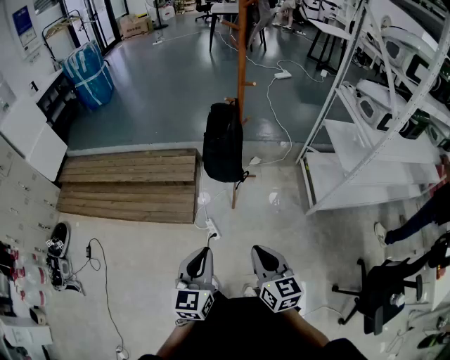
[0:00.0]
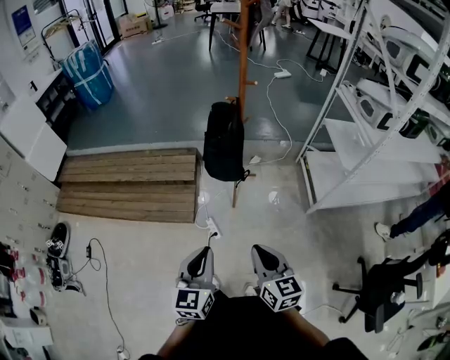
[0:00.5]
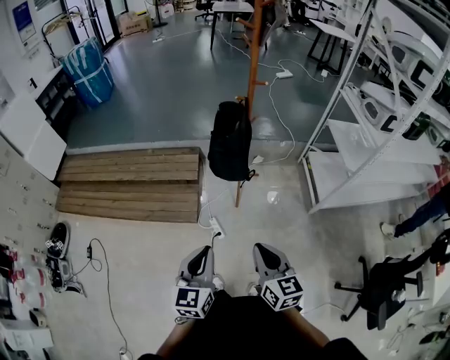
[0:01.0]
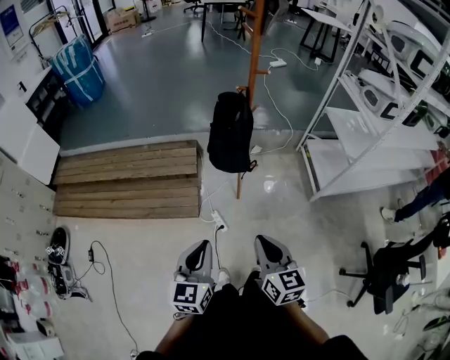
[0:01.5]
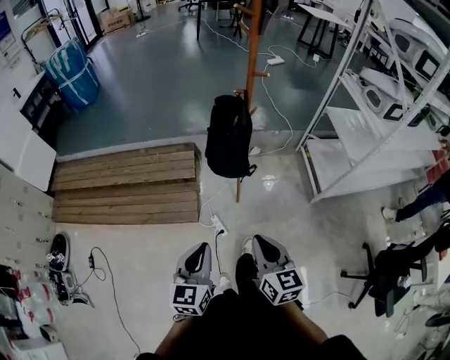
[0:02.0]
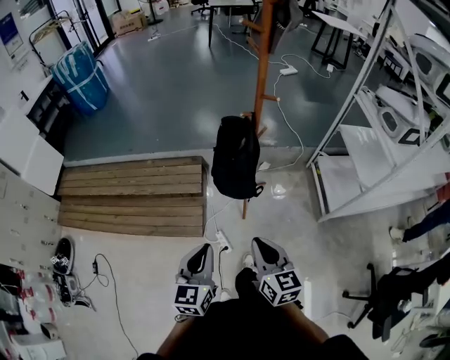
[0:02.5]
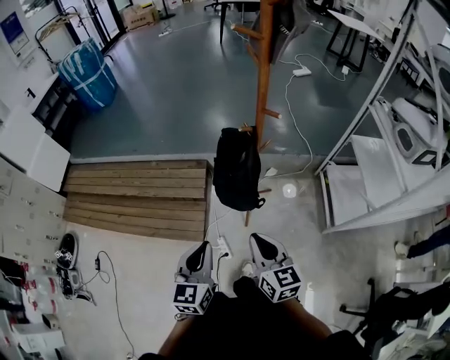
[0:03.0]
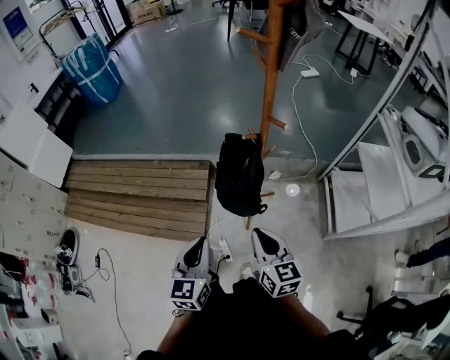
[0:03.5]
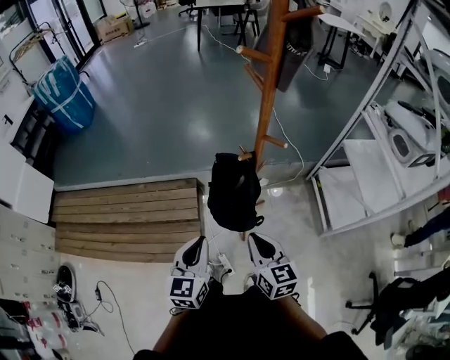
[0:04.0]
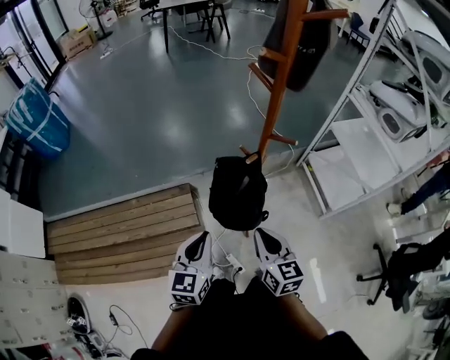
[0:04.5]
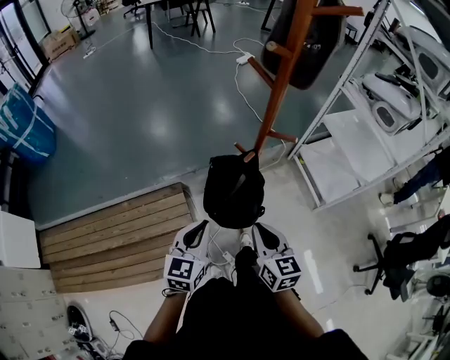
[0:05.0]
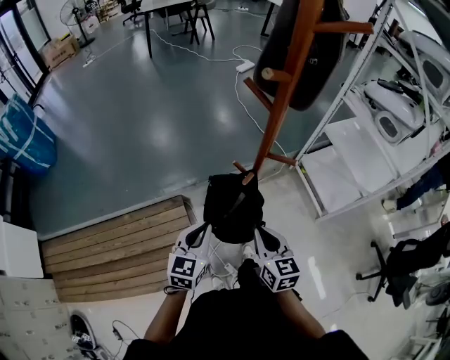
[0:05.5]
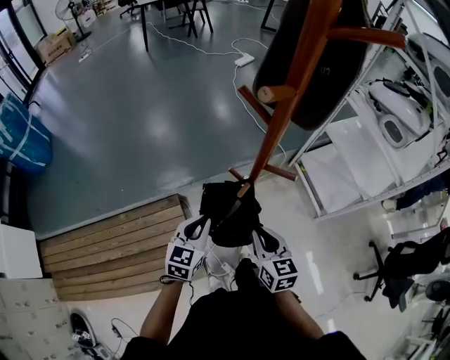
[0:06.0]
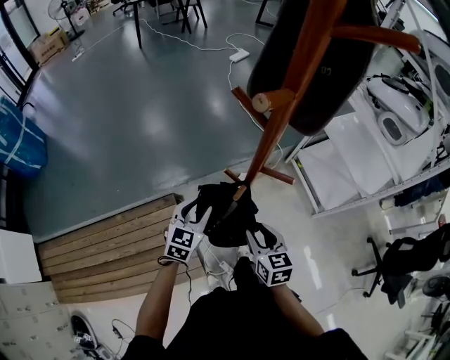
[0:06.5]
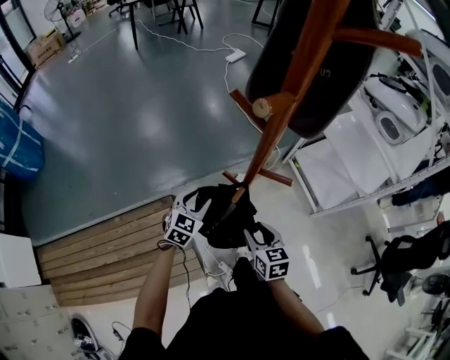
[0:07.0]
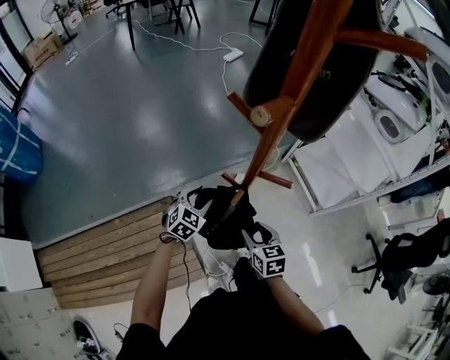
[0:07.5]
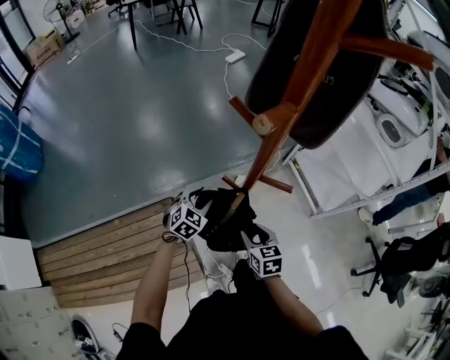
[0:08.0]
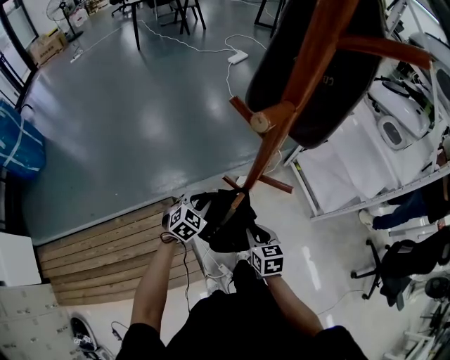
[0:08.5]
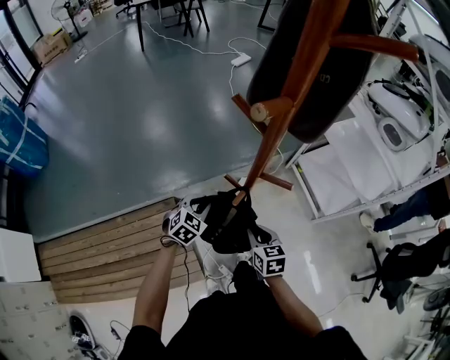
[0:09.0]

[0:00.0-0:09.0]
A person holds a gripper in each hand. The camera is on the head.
0:00.0 to 0:02.0: The grippers both shift to the left and forward by about 10 cm.
0:02.0 to 0:04.5: Both grippers move forward, about 40 cm.
0:04.5 to 0:07.0: The left gripper shifts approximately 35 cm forward and downward, rotates roughly 30 degrees, and opens. Meanwhile the right gripper shifts about 20 cm forward and downward, and opens its fingers.
0:07.0 to 0:09.0: The left gripper closes up. The right gripper closes up.

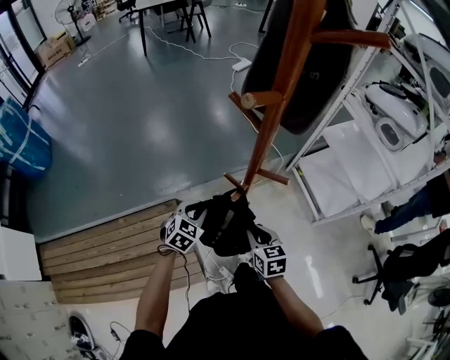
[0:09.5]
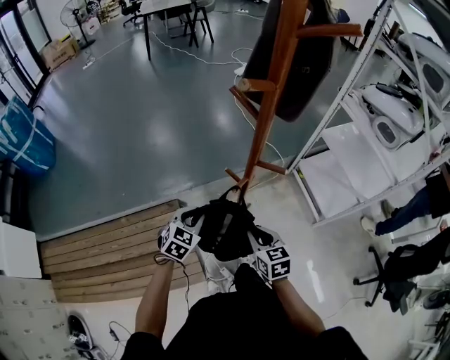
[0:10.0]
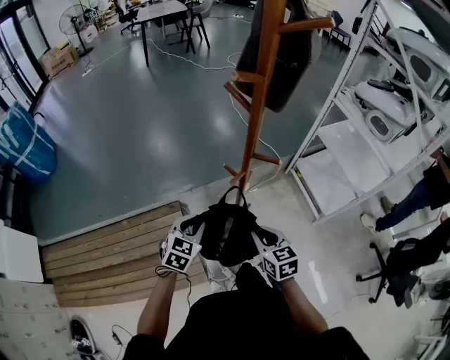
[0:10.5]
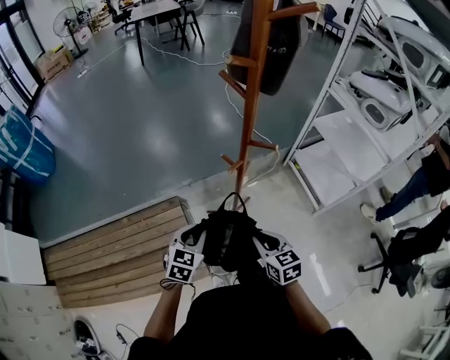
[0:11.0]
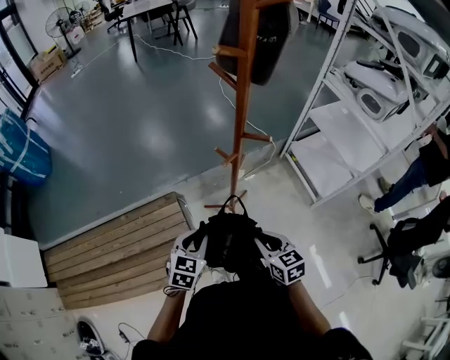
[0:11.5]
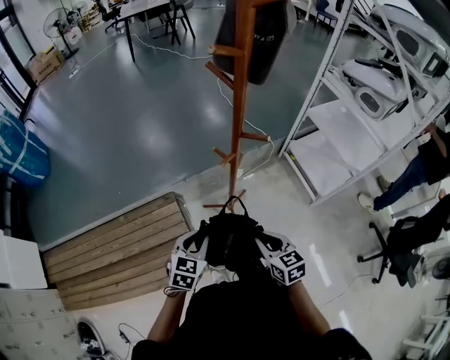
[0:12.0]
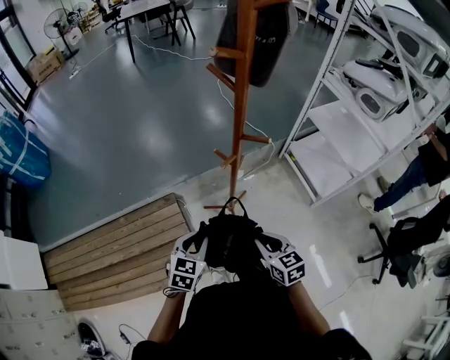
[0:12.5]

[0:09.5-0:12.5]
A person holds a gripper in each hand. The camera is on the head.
0:09.5 to 0:11.0: Both grippers move backward, about 15 cm.
0:11.0 to 0:12.5: The grippers make only small movements.

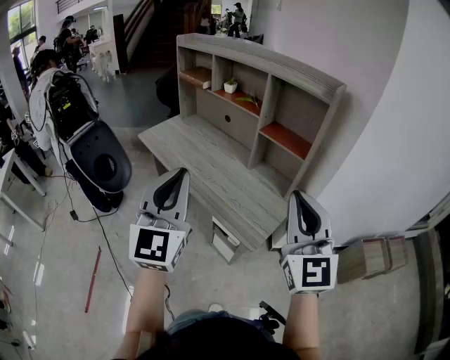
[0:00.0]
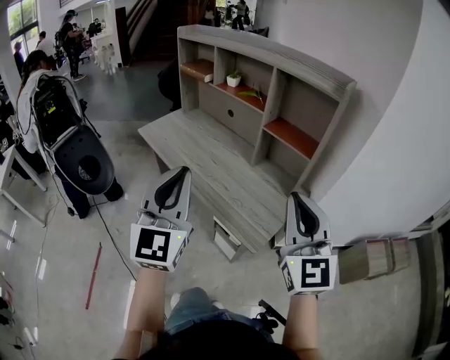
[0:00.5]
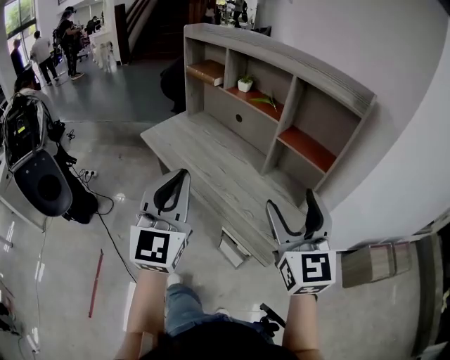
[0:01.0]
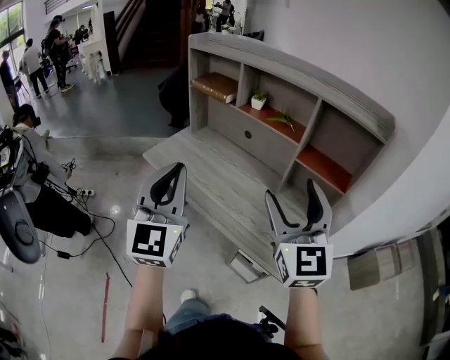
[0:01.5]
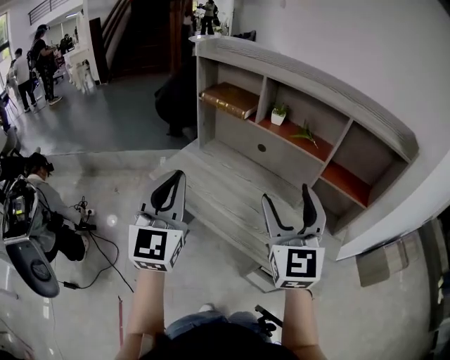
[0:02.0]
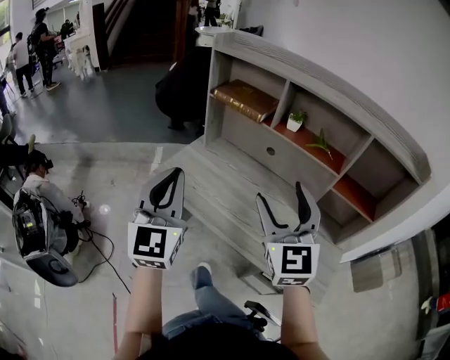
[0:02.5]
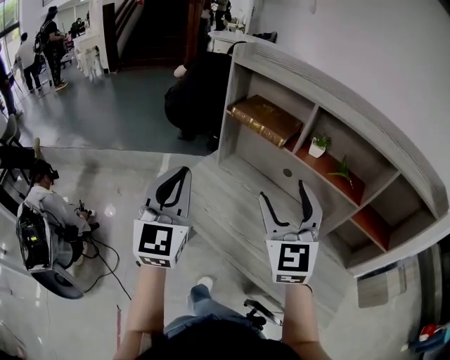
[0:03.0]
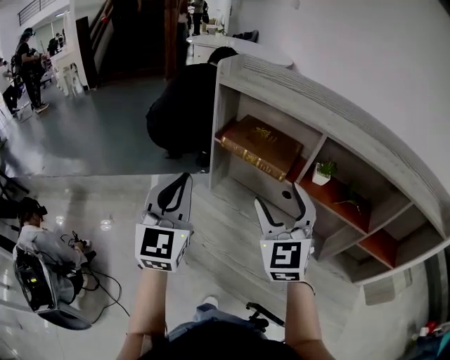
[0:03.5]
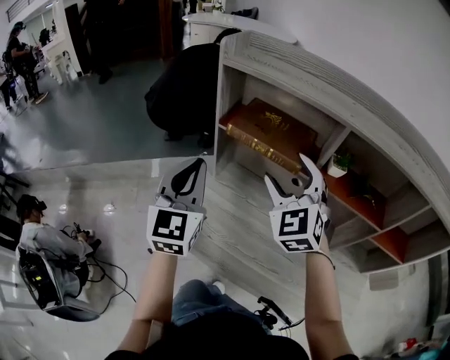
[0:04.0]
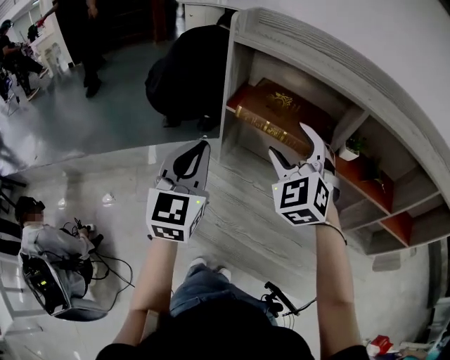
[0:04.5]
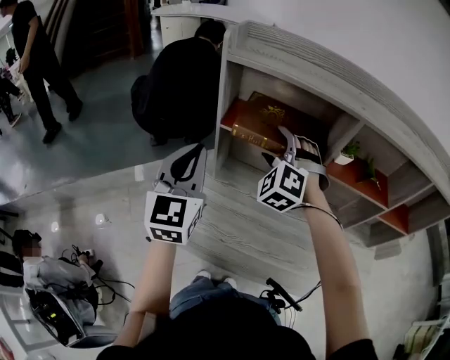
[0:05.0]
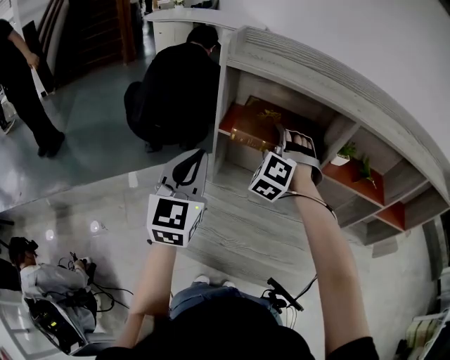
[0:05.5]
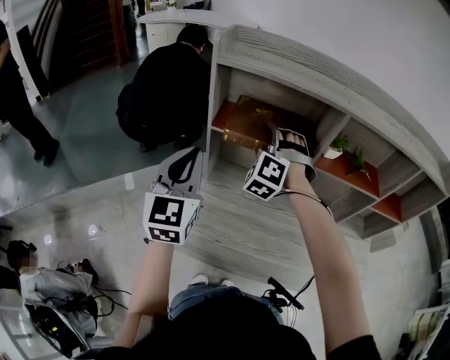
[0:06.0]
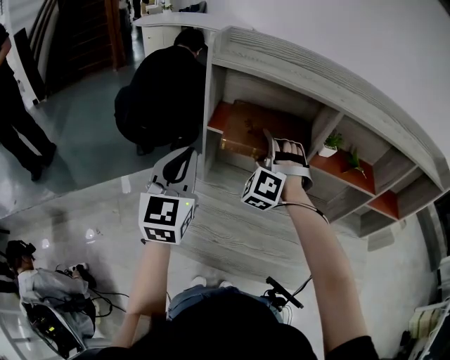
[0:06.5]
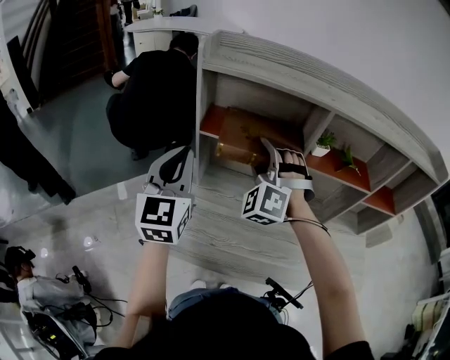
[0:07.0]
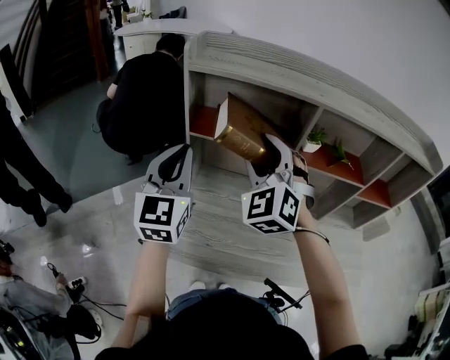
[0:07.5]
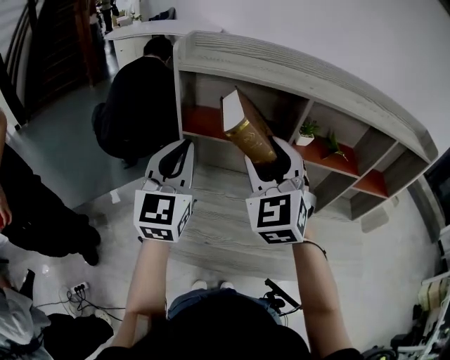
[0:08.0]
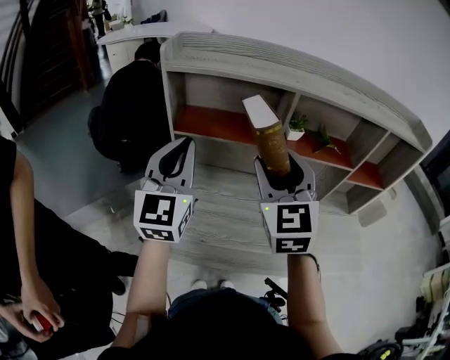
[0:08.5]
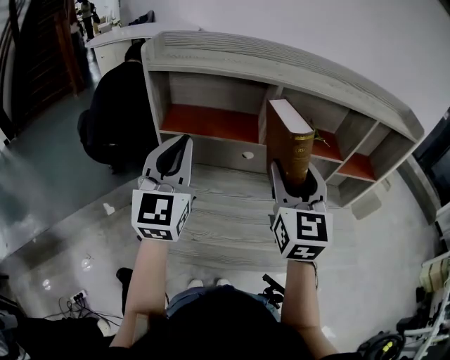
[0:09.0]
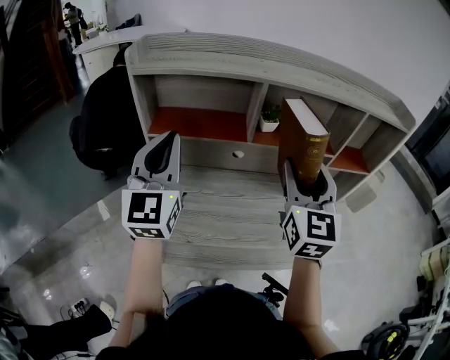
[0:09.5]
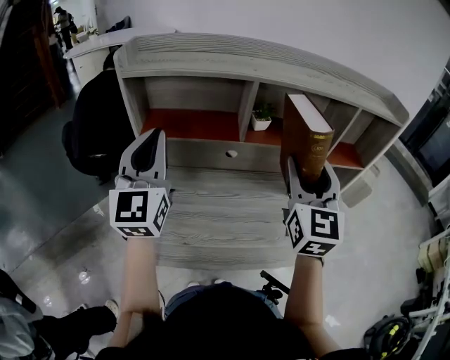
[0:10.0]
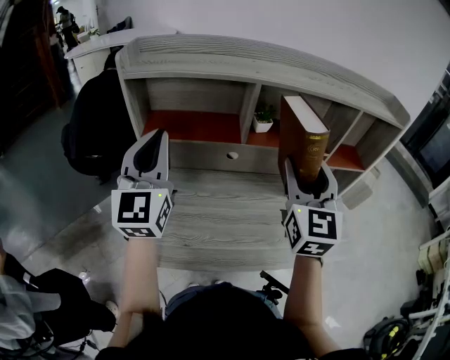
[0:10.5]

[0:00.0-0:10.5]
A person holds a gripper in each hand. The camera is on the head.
0:00.0 to 0:02.0: Both grippers are carried forward and to the left, some 40 cm. The right gripper opens.
0:02.0 to 0:04.0: The two grippers go about 40 cm forward. The right gripper rotates some 30 degrees.
0:04.0 to 0:06.5: The left gripper moves approximately 5 cm. Meanwhile the right gripper is displaced forward and downward by about 10 cm, and turns by some 50 degrees.
0:06.5 to 0:08.5: The right gripper moves backward, upward and to the right, about 20 cm, and twists about 60 degrees clockwise, seen from behind, while the left gripper moves to the right and upward, some 10 cm.
0:08.5 to 0:10.5: The right gripper heads to the right, covering approximately 15 cm.

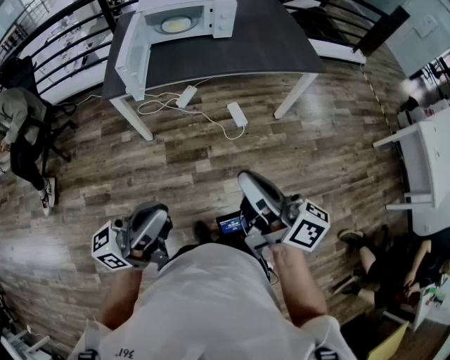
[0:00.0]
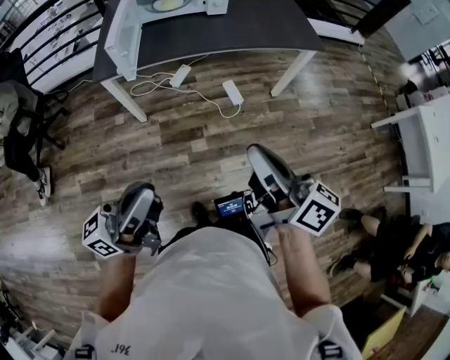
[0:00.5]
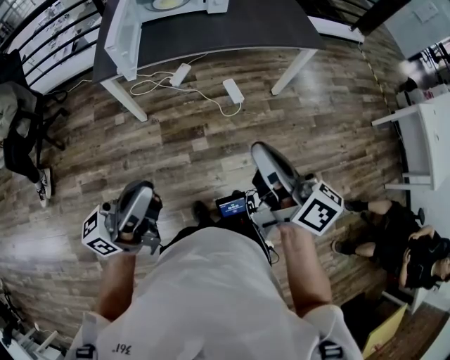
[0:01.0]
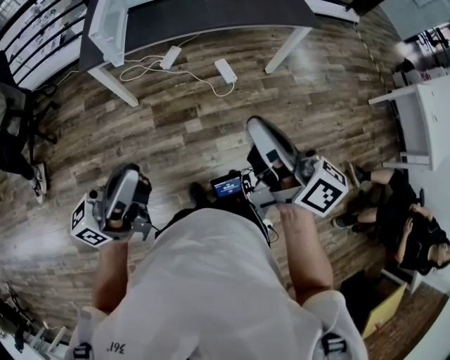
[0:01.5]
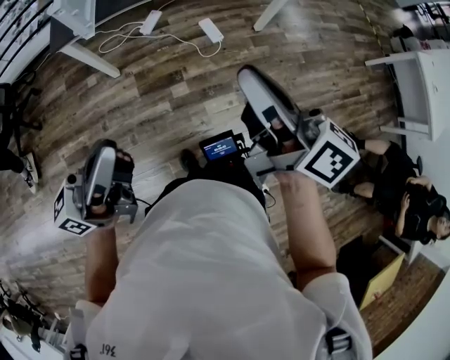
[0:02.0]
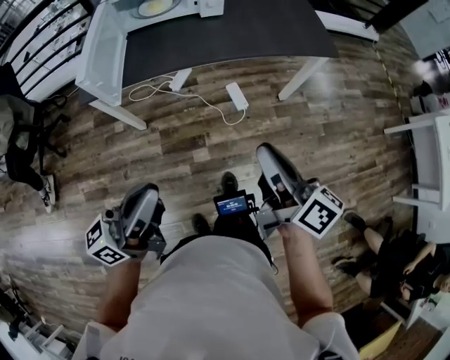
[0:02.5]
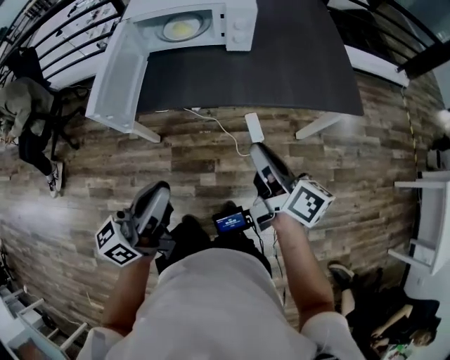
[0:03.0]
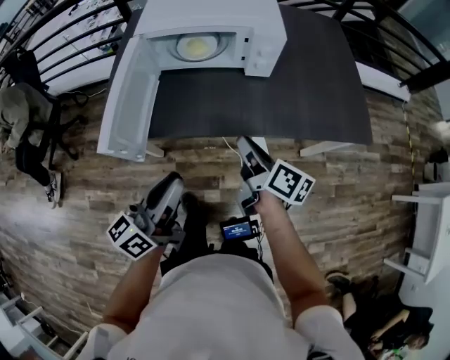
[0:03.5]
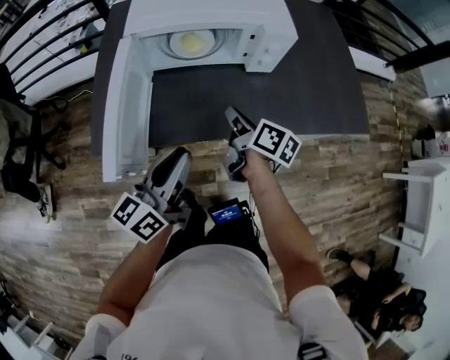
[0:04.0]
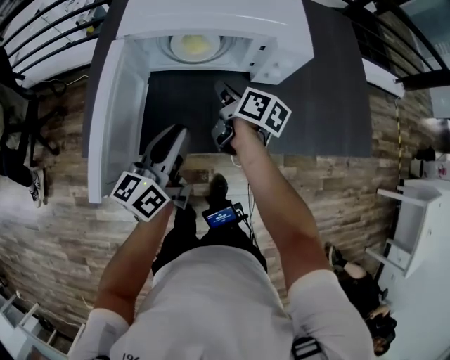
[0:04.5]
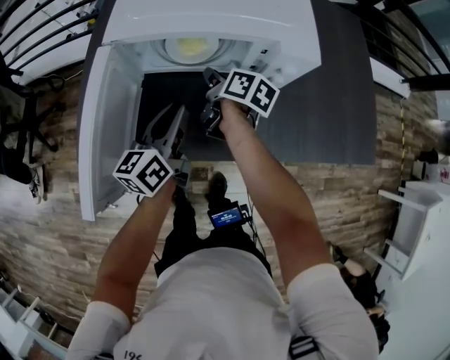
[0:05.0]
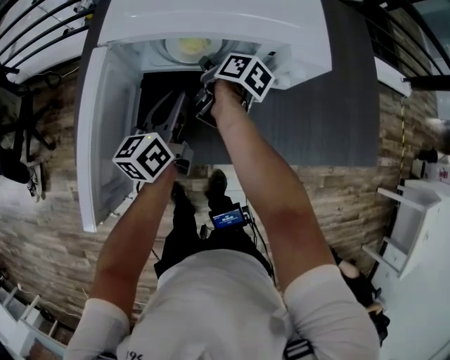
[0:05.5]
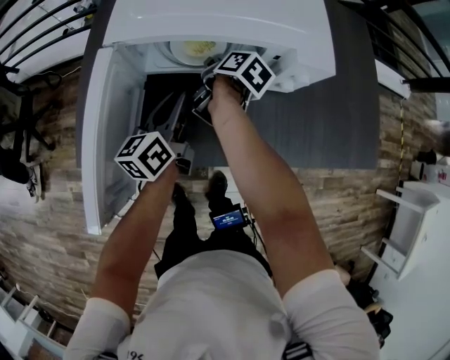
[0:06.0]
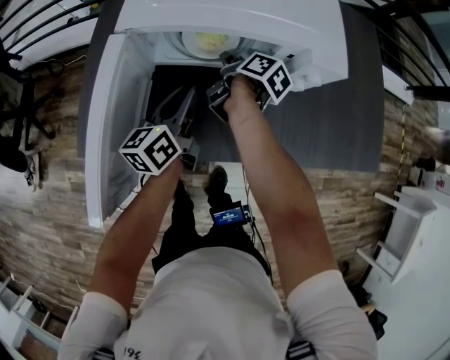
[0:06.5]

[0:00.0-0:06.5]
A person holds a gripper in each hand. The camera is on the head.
0:00.0 to 0:02.0: The grippers make only small movements.
0:02.0 to 0:04.5: The pair of grippers is taken forward, approximately 70 cm. The left gripper swivels some 40 degrees. Meanwhile the right gripper tilts its fingers about 30 degrees downward.
0:04.5 to 0:06.5: Both grippers move forward and downward, roughly 15 cm.
